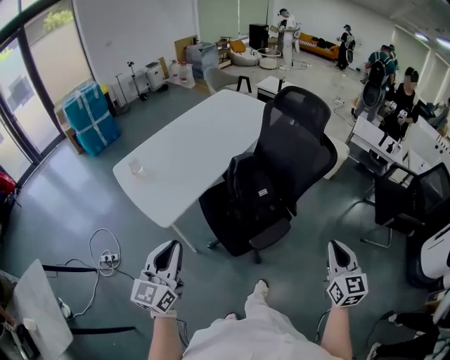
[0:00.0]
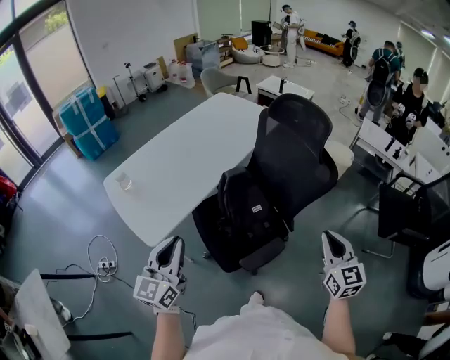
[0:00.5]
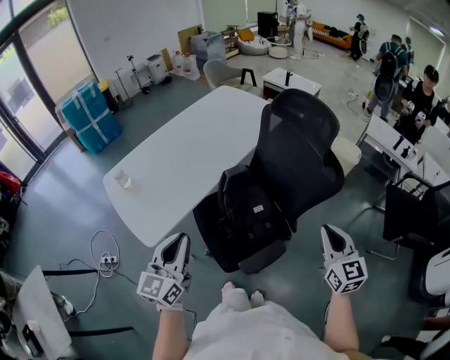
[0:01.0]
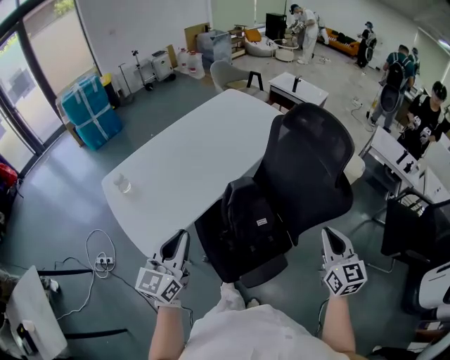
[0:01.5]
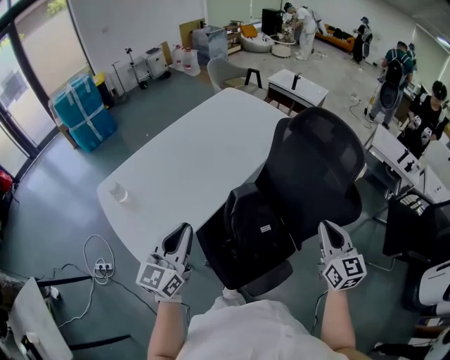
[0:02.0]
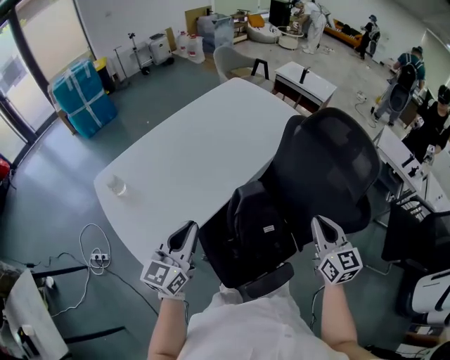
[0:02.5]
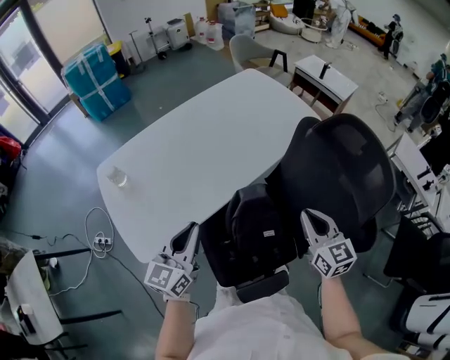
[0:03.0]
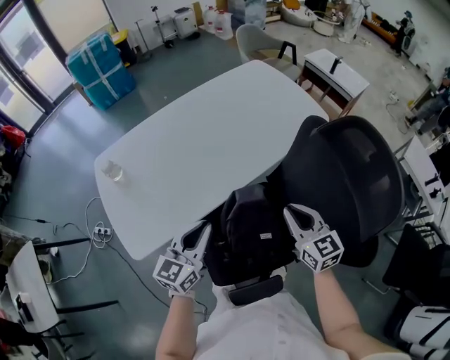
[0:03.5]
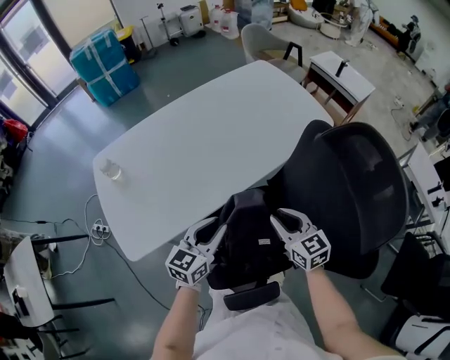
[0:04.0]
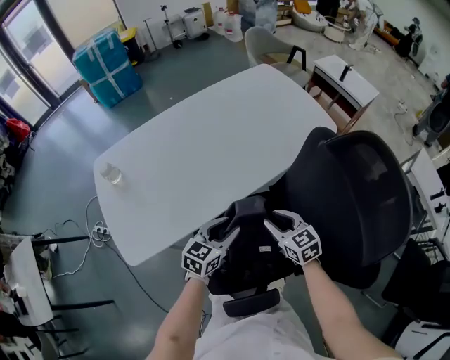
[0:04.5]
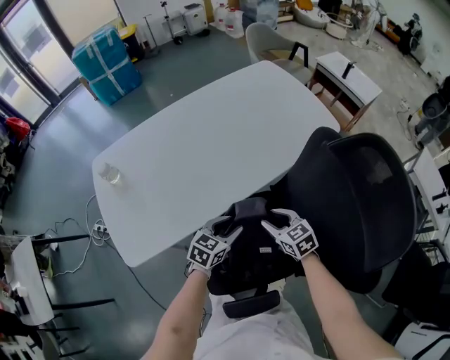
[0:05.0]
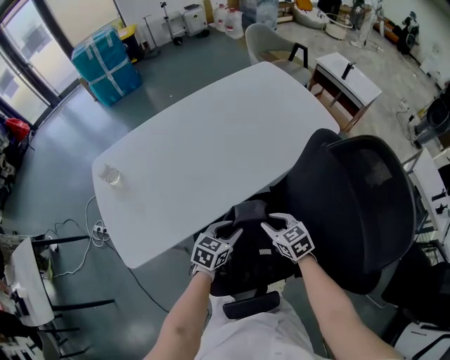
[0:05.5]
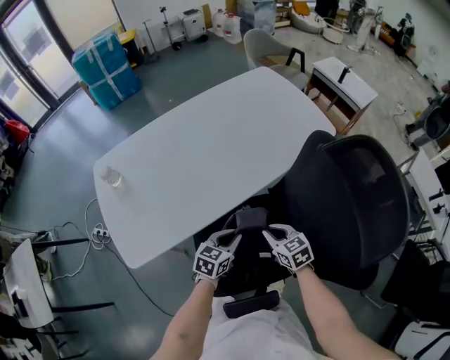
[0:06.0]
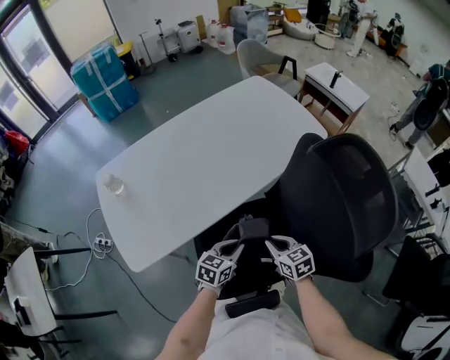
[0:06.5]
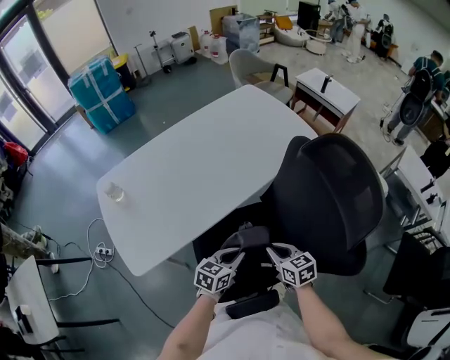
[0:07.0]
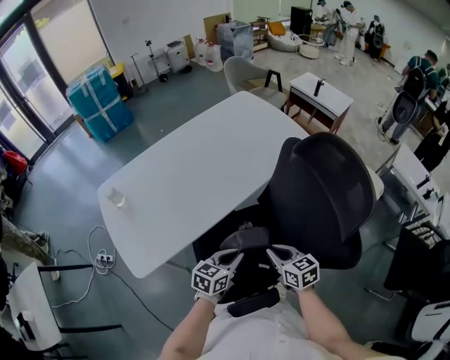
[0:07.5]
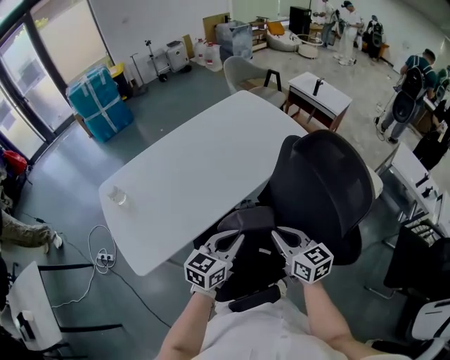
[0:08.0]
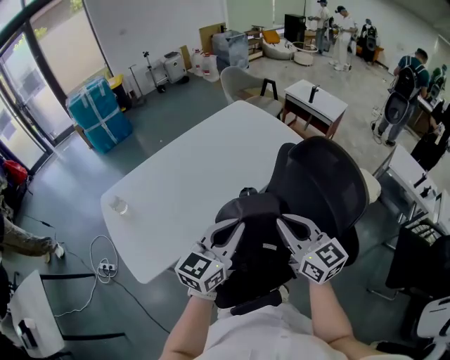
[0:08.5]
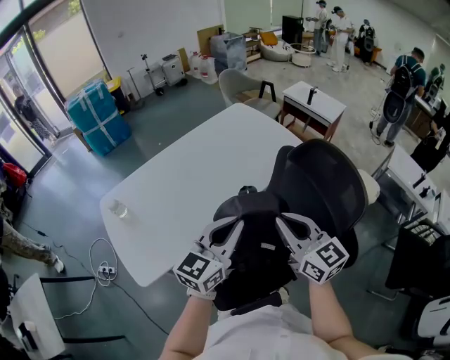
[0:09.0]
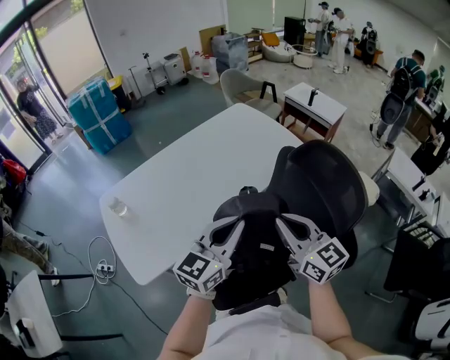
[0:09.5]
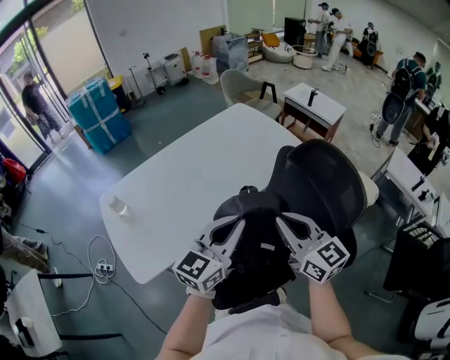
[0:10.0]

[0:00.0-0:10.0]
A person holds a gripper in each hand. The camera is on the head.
0:00.0 to 0:02.0: The two grippers go about 30 cm forward.
0:02.0 to 0:04.0: The left gripper shifts some 25 cm downward, to the right and forward; the right gripper is displaced forward, downward and to the left by roughly 25 cm, and changes its angle by roughly 40 degrees.
0:04.0 to 0:06.0: The grippers both shift downward by roughly 10 cm.
0:06.0 to 0:08.0: Both grippers travel together upward, some 20 cm. The right gripper changes its angle by about 30 degrees.
0:08.0 to 0:10.0: Both grippers move upward, some 15 cm.

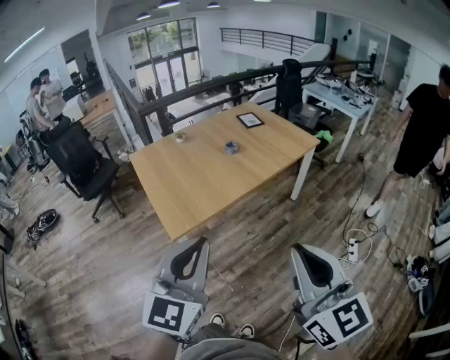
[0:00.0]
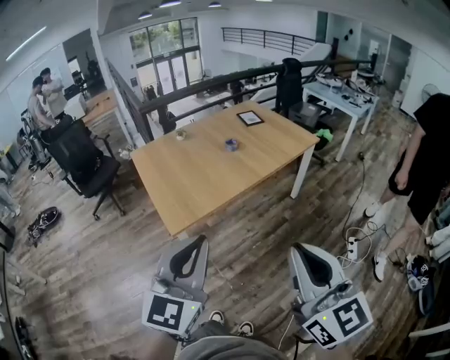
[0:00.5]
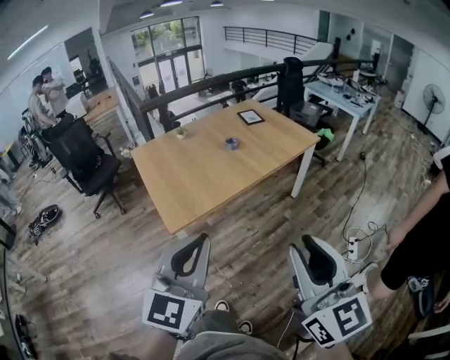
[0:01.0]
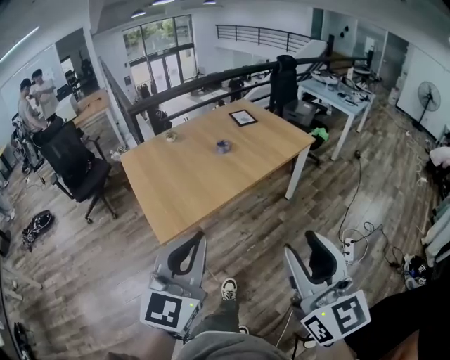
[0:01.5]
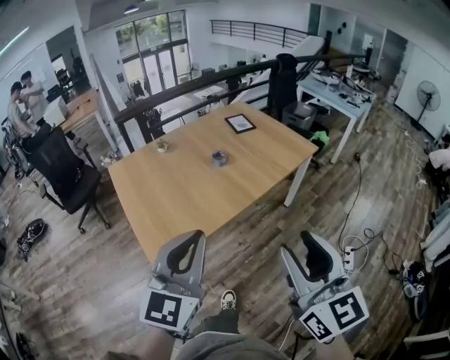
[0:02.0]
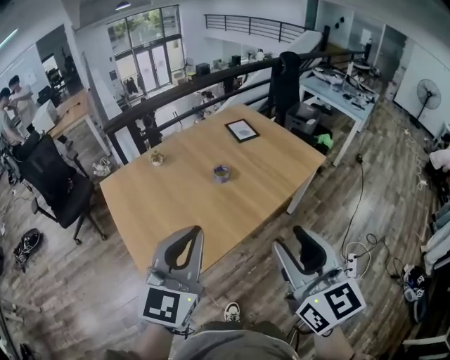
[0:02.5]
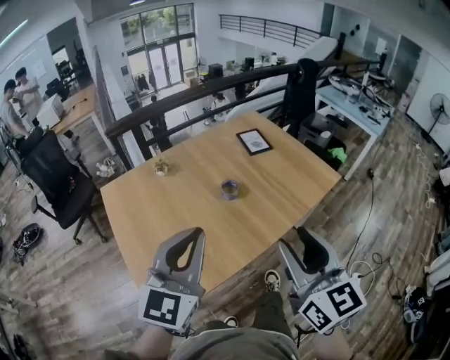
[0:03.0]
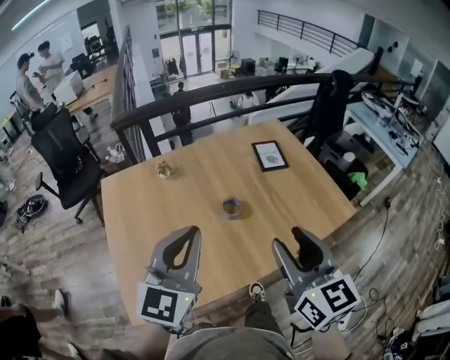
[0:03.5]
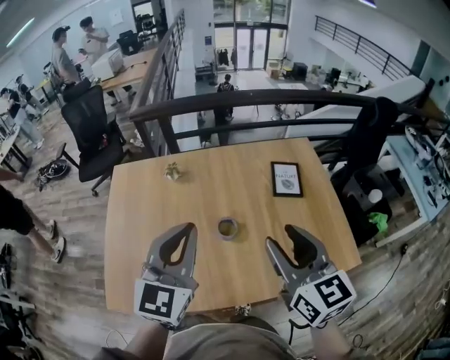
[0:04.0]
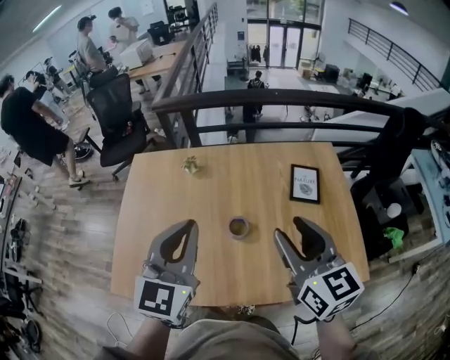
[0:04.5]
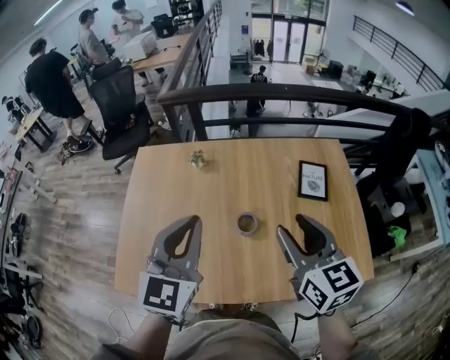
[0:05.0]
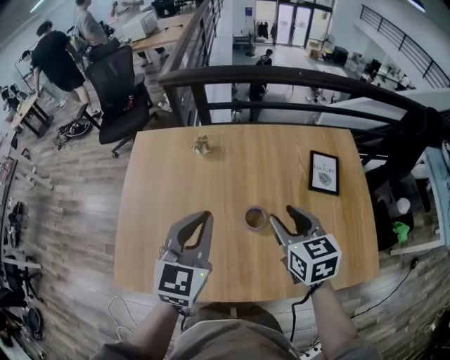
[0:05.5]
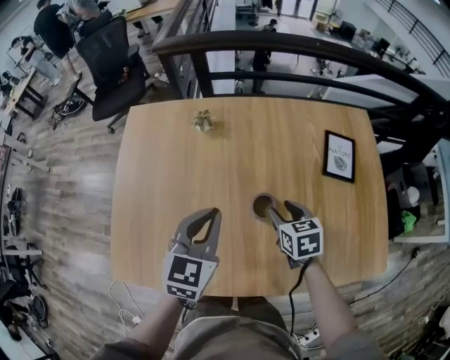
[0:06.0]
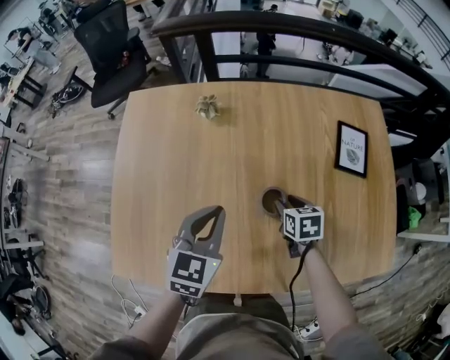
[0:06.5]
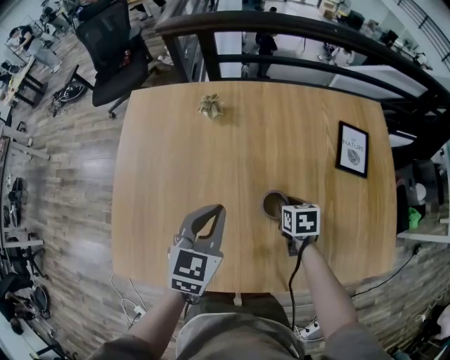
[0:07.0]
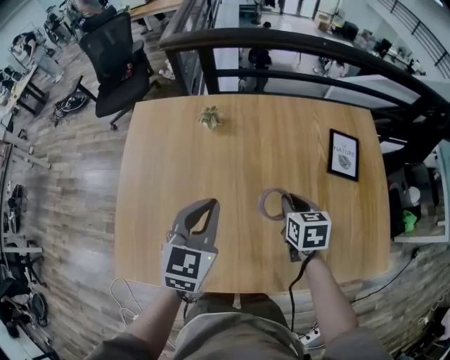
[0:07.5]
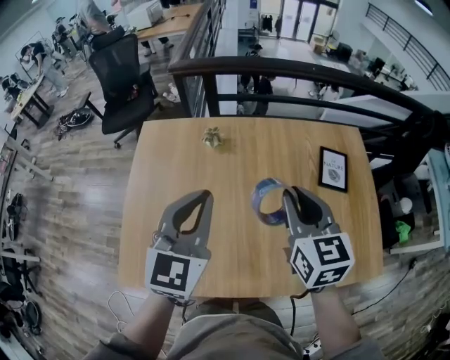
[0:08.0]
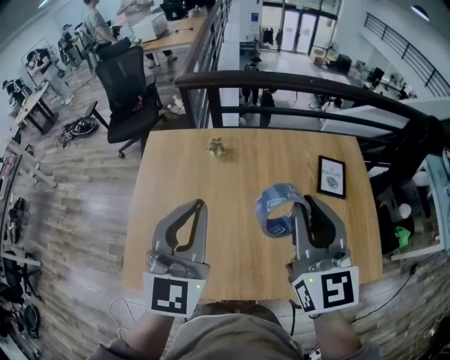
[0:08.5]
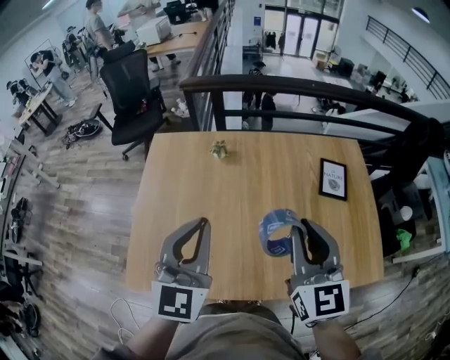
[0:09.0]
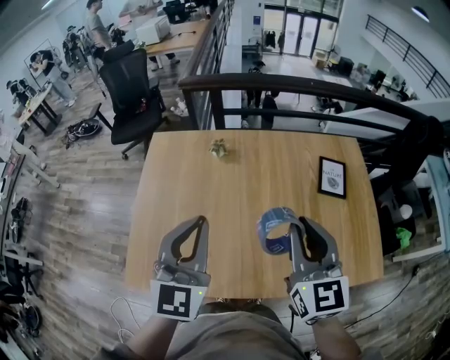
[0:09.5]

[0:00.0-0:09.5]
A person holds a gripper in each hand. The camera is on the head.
0:00.0 to 0:02.0: Both grippers move forward, roughly 20 cm. The right gripper opens up.
0:02.0 to 0:04.0: The two grippers travel together, approximately 60 cm. The left gripper turns by approximately 30 degrees; the right gripper changes its angle by approximately 30 degrees.
0:04.0 to 0:05.5: The left gripper heads downward and forward, covering approximately 10 cm. The right gripper shifts roughly 20 cm downward and forward, and rotates about 20 degrees.
0:05.5 to 0:07.5: The left gripper moves downward, about 10 cm; the right gripper heads downward, covering approximately 15 cm, and closes up.
0:07.5 to 0:09.5: The right gripper shifts some 30 cm upward and backward, and points its fingers approximately 40 degrees further upward; the left gripper shifts approximately 20 cm upward and backward, and rotates approximately 20 degrees.

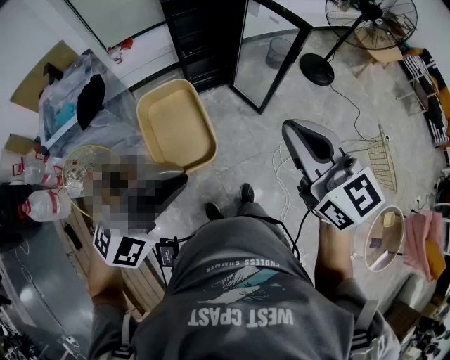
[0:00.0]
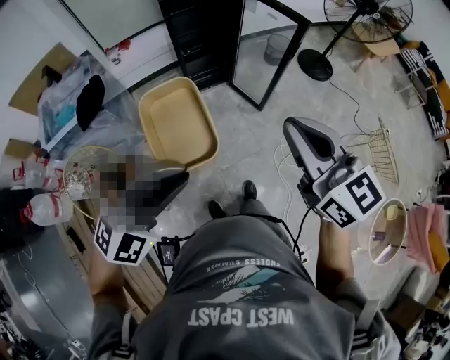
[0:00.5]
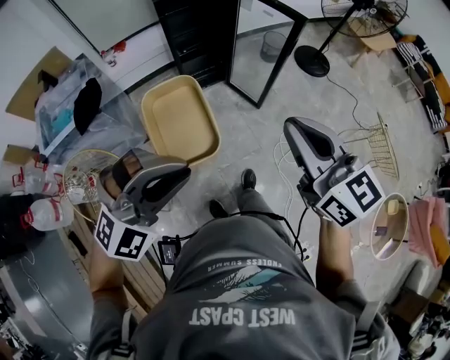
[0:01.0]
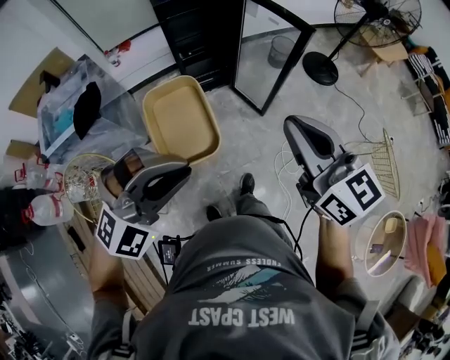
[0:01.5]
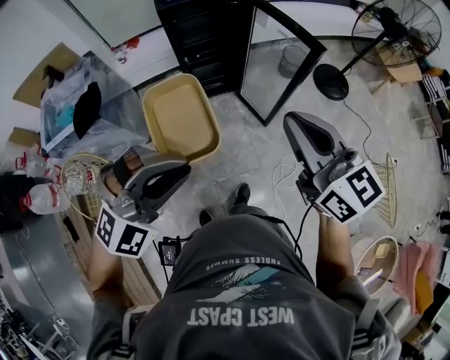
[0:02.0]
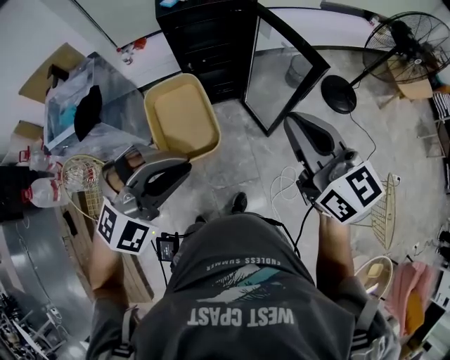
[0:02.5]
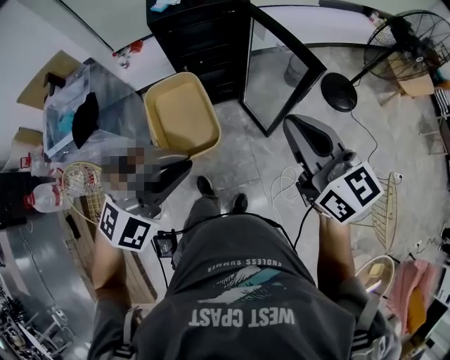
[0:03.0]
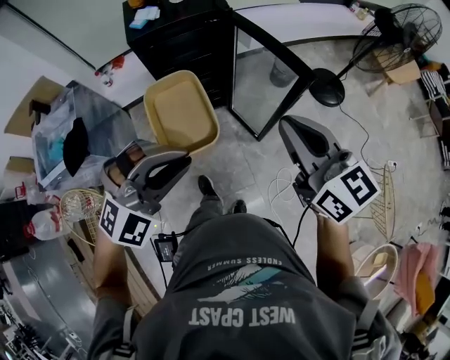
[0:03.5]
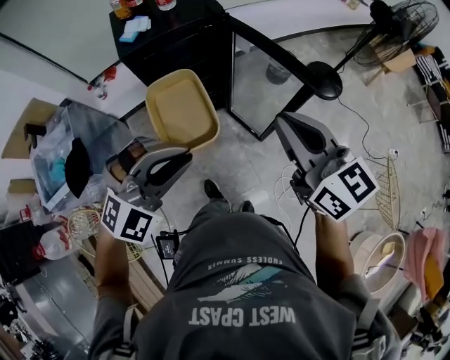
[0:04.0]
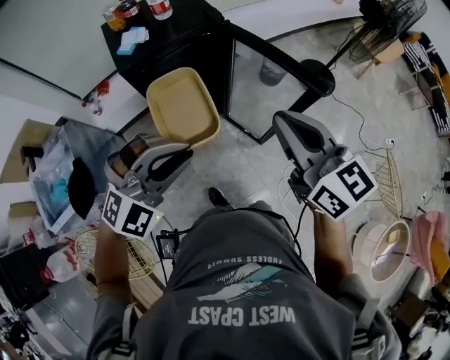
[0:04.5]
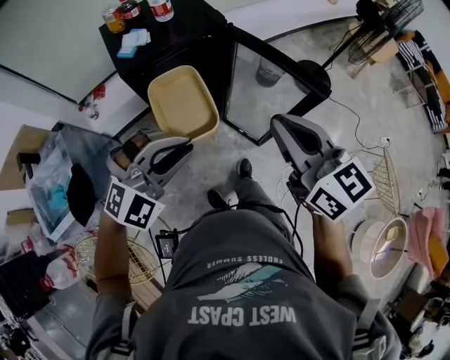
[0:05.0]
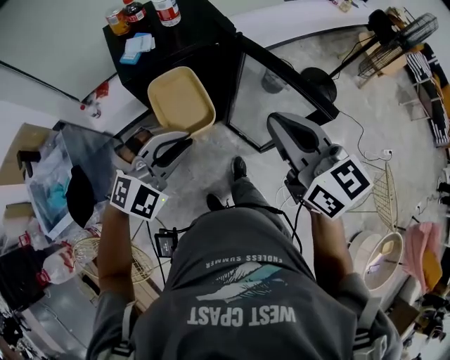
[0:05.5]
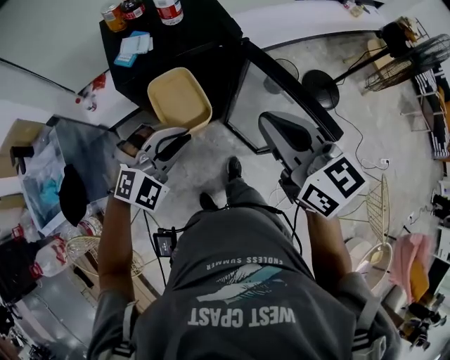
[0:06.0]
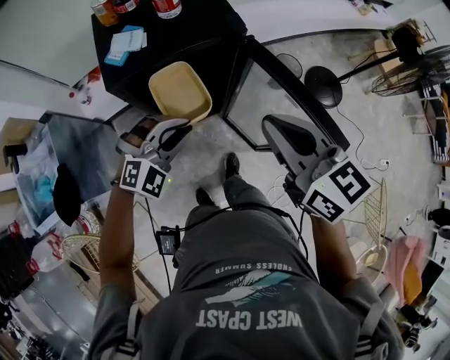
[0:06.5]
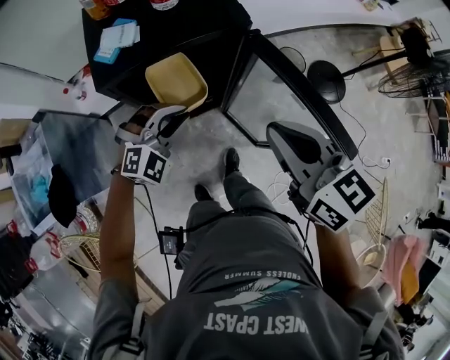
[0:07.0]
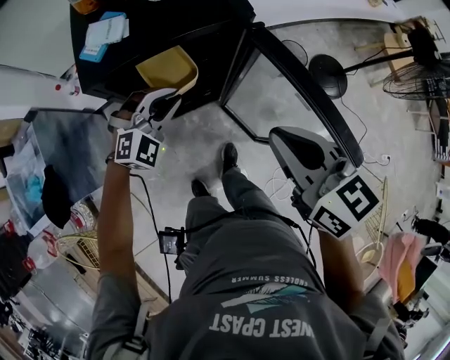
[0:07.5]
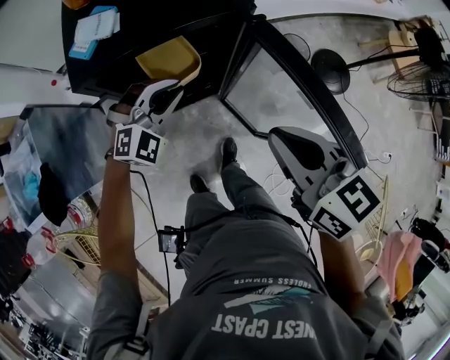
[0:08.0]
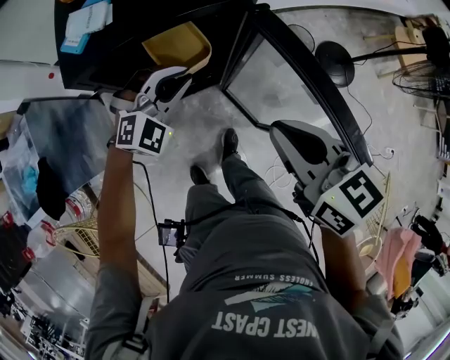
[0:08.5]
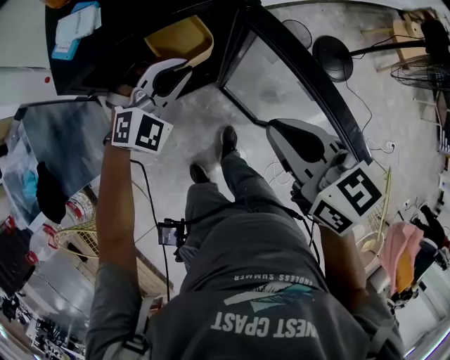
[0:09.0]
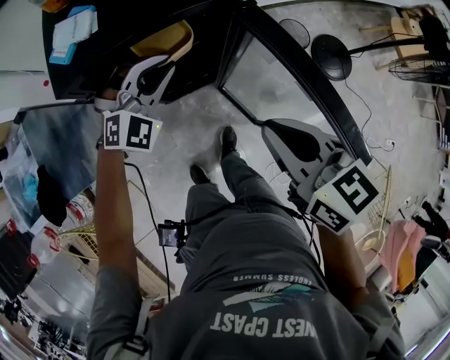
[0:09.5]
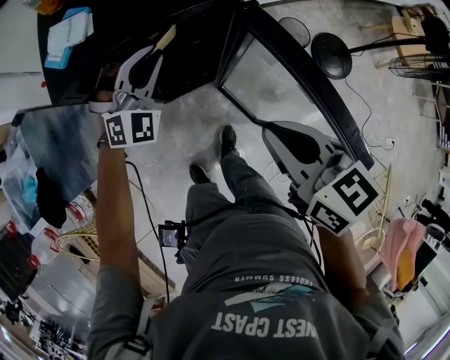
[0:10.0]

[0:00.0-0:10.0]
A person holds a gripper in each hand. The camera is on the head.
0:00.0 to 0:02.0: The two grippers go about 15 cm forward.
0:02.0 to 0:04.0: The two grippers go about 20 cm forward.
0:04.0 to 0:06.0: The right gripper heads forward and to the left, covering approximately 15 cm. The left gripper is displaced forward, downward and to the left by some 20 cm.
0:06.0 to 0:08.0: The right gripper heads downward, covering roughly 10 cm, while the left gripper heads forward and downward, covering roughly 20 cm.
0:08.0 to 0:10.0: The left gripper travels forward by roughly 5 cm.
